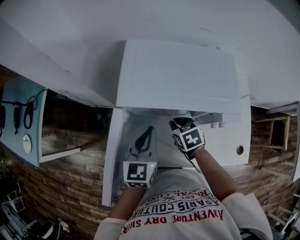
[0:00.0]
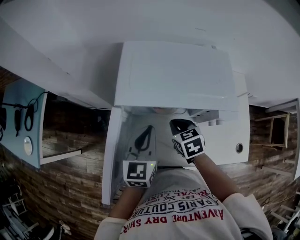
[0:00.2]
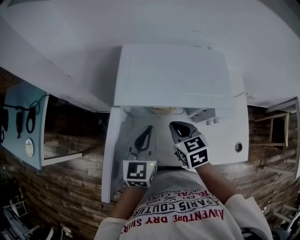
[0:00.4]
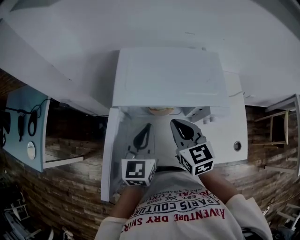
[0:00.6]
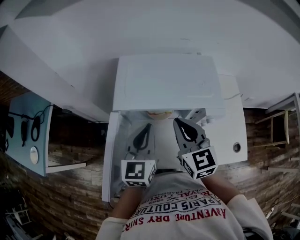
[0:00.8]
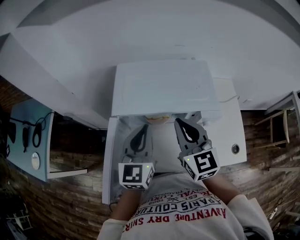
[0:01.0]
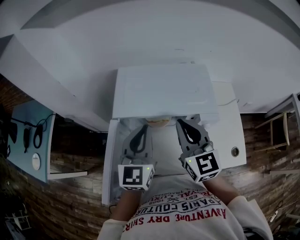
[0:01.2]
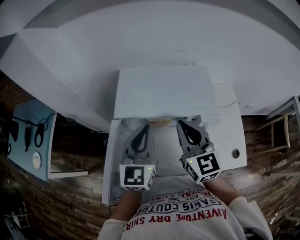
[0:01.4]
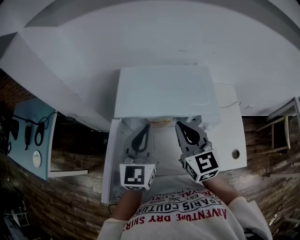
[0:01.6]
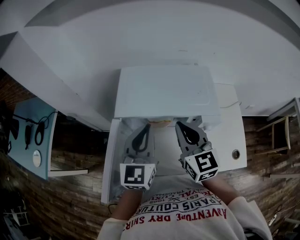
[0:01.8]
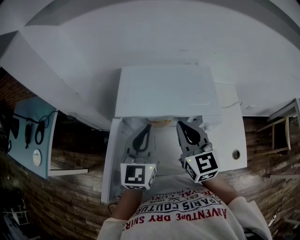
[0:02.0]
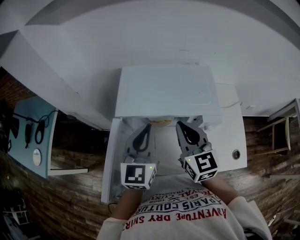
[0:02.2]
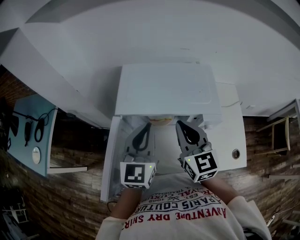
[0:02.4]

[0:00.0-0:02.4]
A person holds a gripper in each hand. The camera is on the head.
0:00.0 to 0:01.2: The left gripper heads upward, covering about 15 cm.

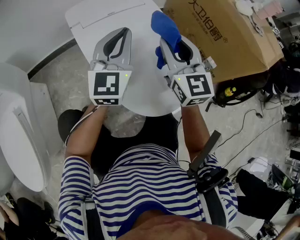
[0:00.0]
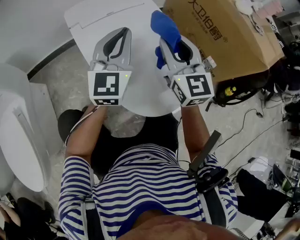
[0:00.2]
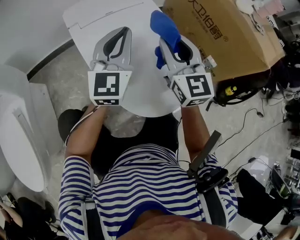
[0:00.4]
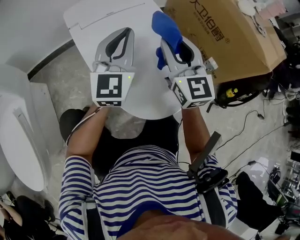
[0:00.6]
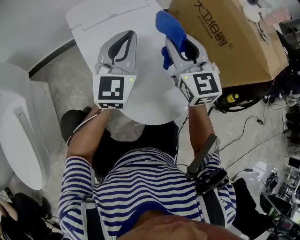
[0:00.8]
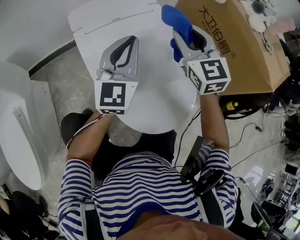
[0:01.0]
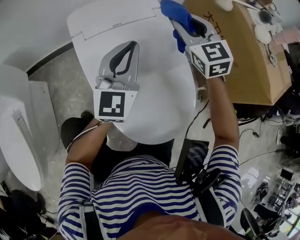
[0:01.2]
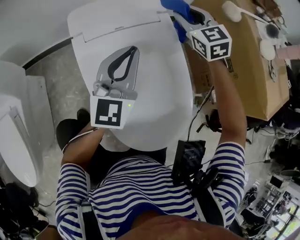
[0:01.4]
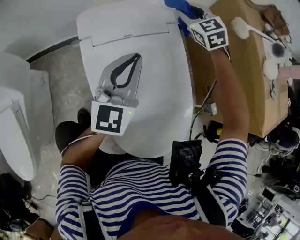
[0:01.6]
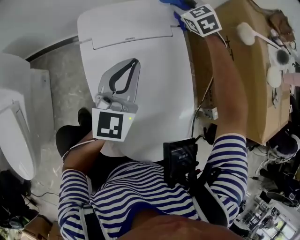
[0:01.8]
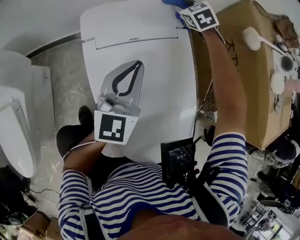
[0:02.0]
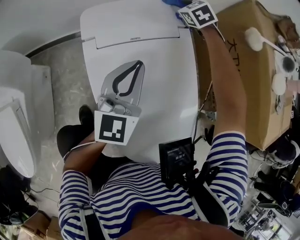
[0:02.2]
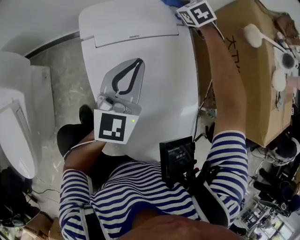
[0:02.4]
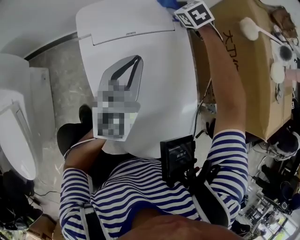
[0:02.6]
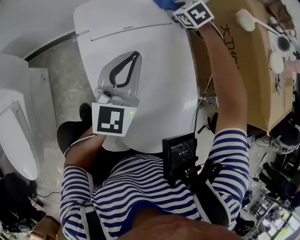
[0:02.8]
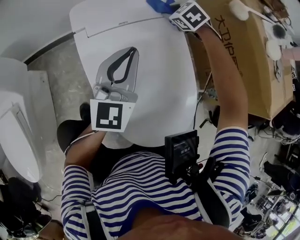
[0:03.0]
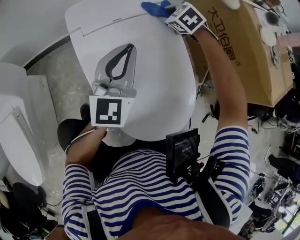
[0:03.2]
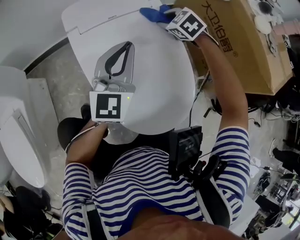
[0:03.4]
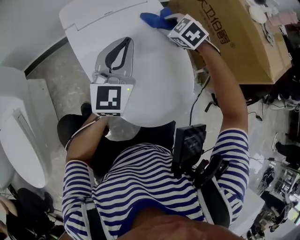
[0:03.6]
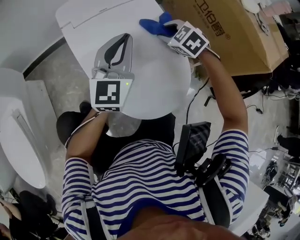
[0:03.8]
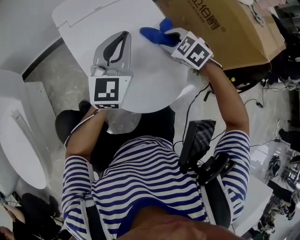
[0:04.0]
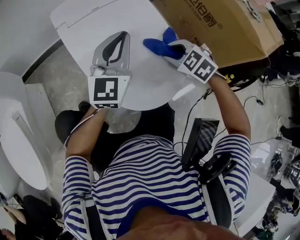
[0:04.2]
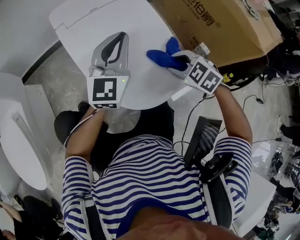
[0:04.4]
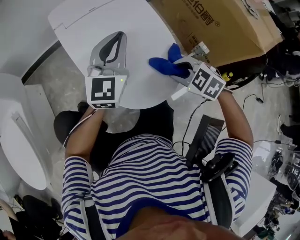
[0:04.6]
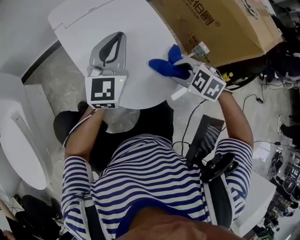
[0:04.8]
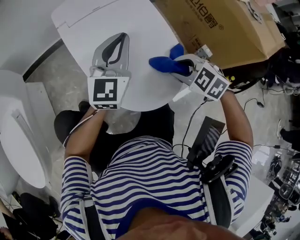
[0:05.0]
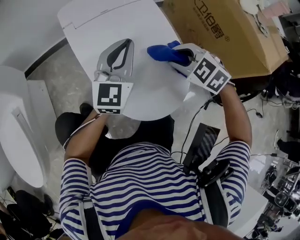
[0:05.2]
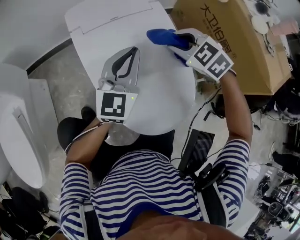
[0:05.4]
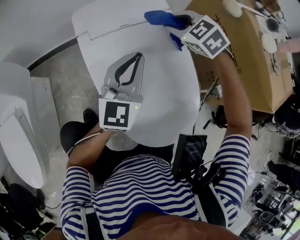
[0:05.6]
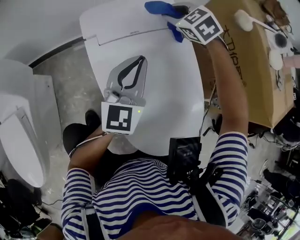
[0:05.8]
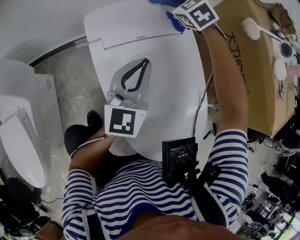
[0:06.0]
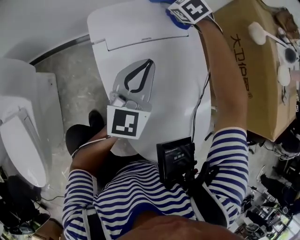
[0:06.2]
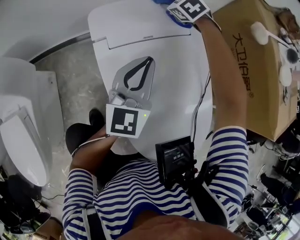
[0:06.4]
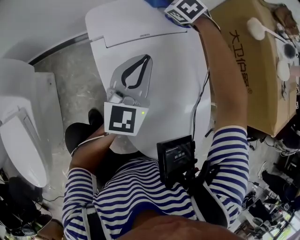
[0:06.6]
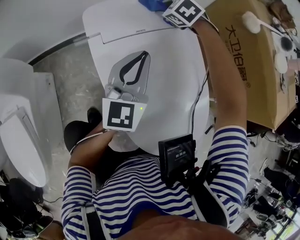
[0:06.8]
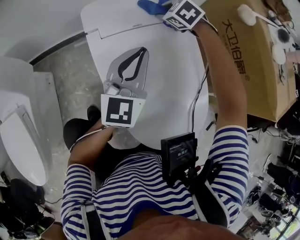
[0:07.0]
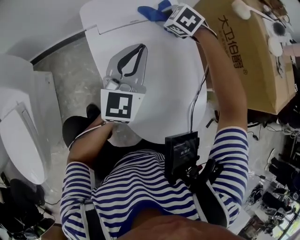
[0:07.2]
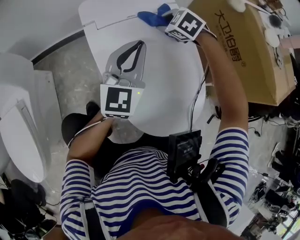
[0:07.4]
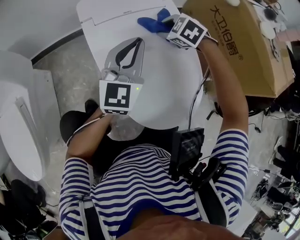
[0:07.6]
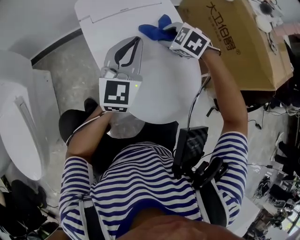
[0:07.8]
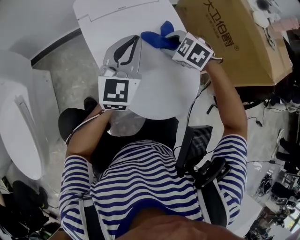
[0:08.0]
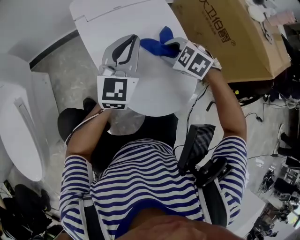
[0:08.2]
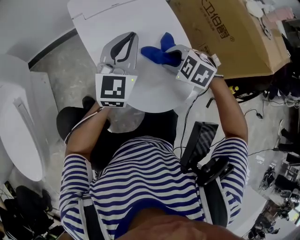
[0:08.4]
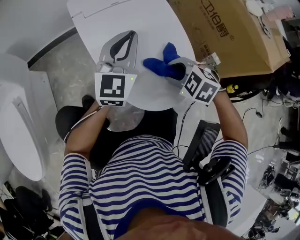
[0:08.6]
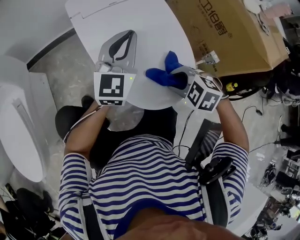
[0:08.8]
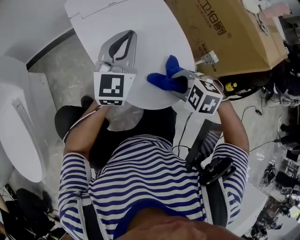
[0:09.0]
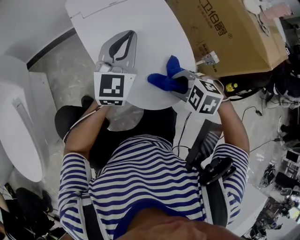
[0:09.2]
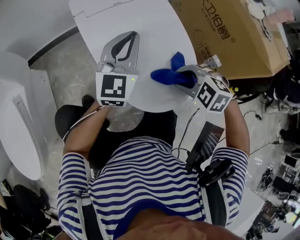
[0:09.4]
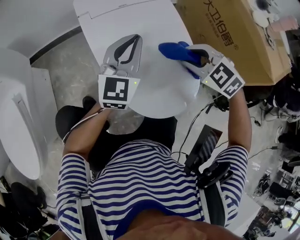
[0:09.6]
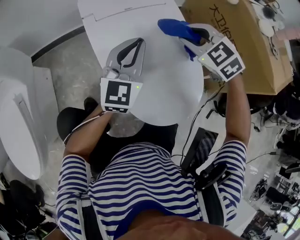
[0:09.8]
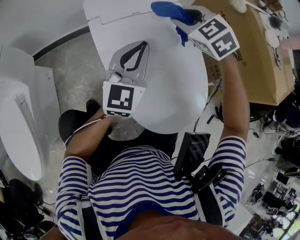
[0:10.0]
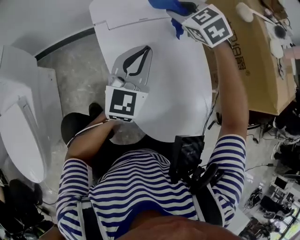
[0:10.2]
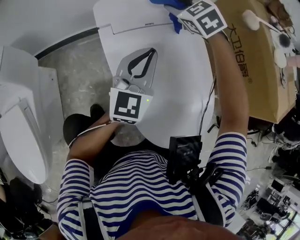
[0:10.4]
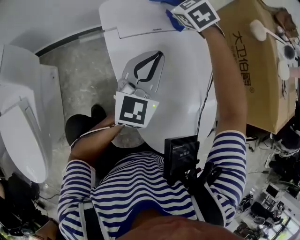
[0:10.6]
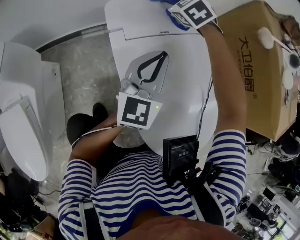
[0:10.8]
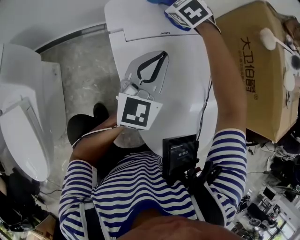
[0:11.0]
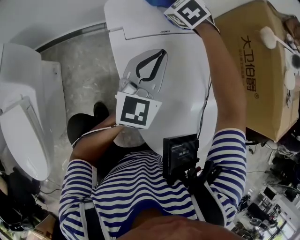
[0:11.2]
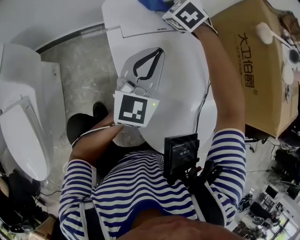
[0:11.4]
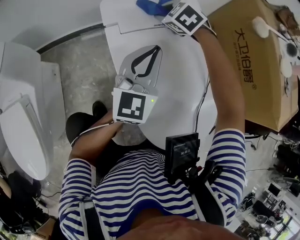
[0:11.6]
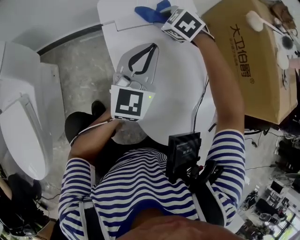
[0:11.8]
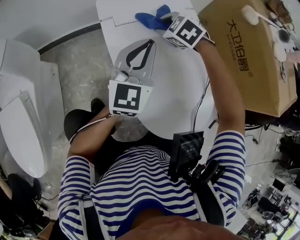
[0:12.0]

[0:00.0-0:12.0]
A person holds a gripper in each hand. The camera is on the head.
0:00.0 to 0:01.6: The left gripper travels forward by roughly 10 cm. The right gripper goes about 35 cm forward, and changes its angle by some 40 degrees.
0:01.6 to 0:03.0: The right gripper goes roughly 10 cm downward, travels forward and back again, roughly 10 cm each way, and swivels about 30 degrees.
0:03.0 to 0:04.4: The left gripper heads backward, covering about 10 cm. Meanwhile the right gripper goes approximately 40 cm backward.
0:04.4 to 0:06.0: The right gripper moves forward, roughly 50 cm. Meanwhile the left gripper goes roughly 15 cm forward and to the left.
0:06.0 to 0:07.6: The right gripper goes some 25 cm backward. Meanwhile the left gripper moves backward, about 10 cm.
0:07.6 to 0:09.0: The left gripper goes about 5 cm backward; the right gripper travels backward by some 30 cm.
0:09.0 to 0:10.4: The right gripper shifts some 50 cm forward, and swivels about 30 degrees; the left gripper shifts approximately 10 cm forward.
0:10.4 to 0:12.0: The right gripper shifts approximately 15 cm downward and backward.

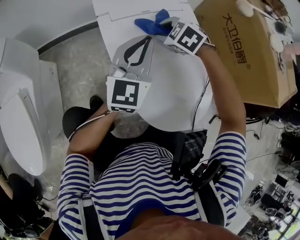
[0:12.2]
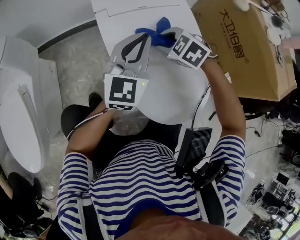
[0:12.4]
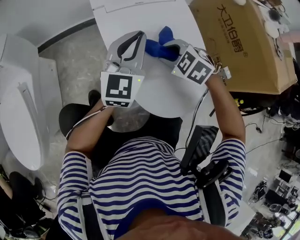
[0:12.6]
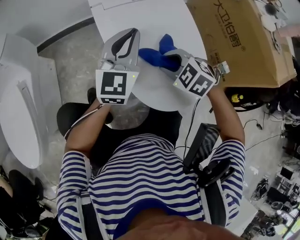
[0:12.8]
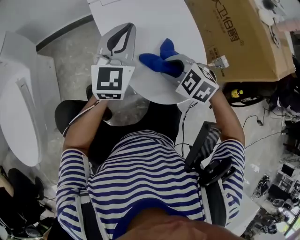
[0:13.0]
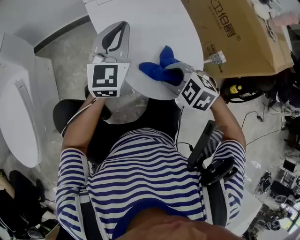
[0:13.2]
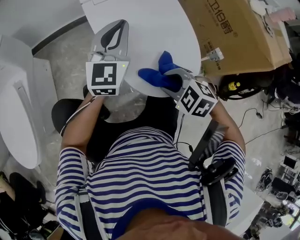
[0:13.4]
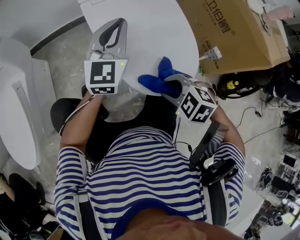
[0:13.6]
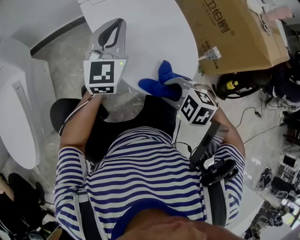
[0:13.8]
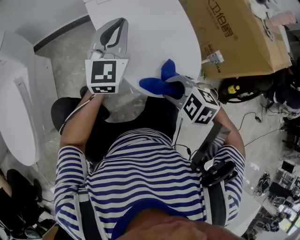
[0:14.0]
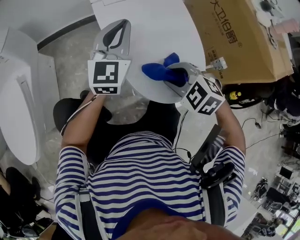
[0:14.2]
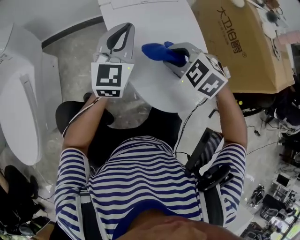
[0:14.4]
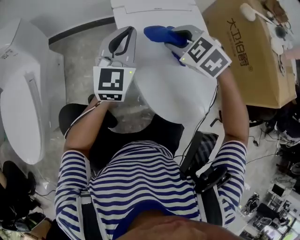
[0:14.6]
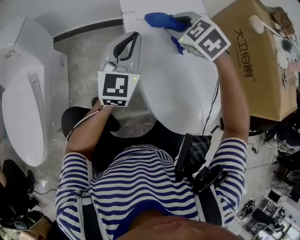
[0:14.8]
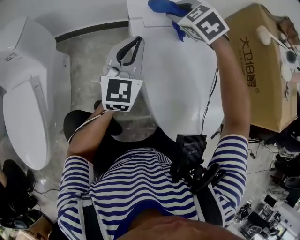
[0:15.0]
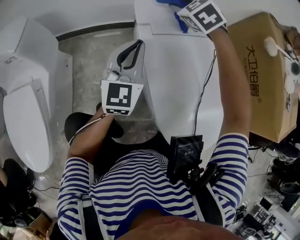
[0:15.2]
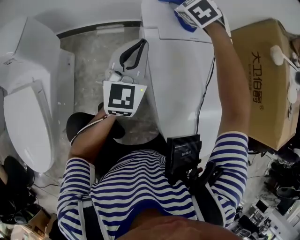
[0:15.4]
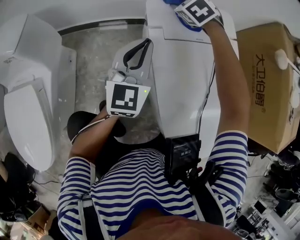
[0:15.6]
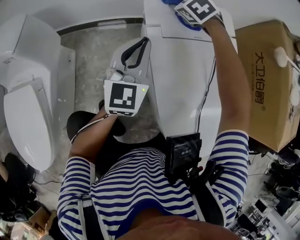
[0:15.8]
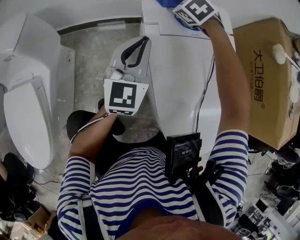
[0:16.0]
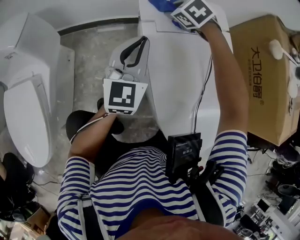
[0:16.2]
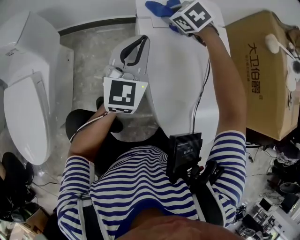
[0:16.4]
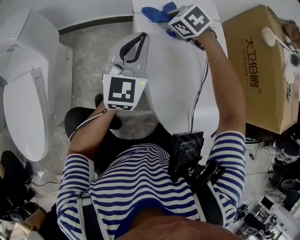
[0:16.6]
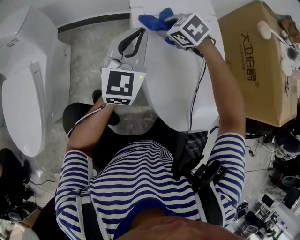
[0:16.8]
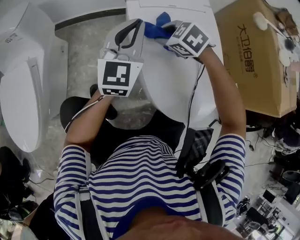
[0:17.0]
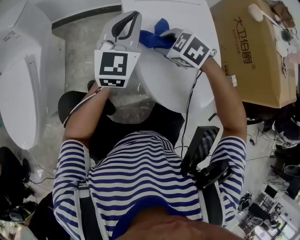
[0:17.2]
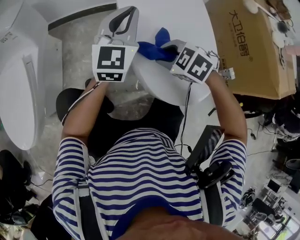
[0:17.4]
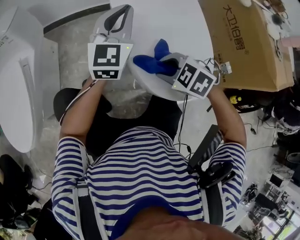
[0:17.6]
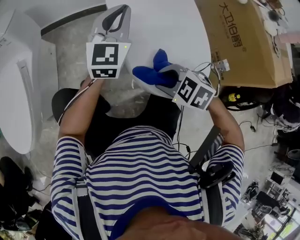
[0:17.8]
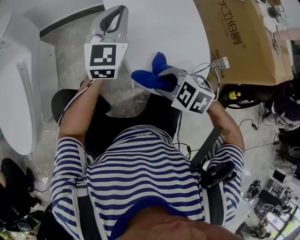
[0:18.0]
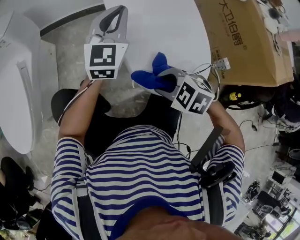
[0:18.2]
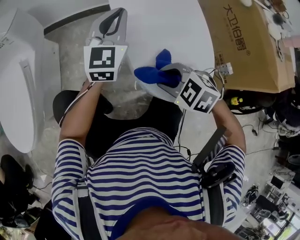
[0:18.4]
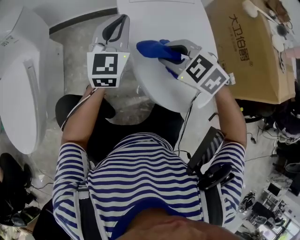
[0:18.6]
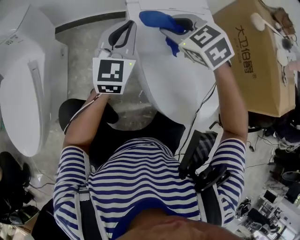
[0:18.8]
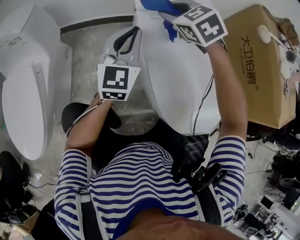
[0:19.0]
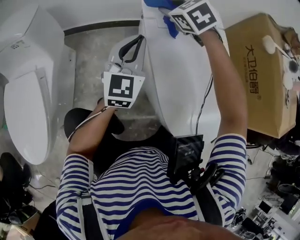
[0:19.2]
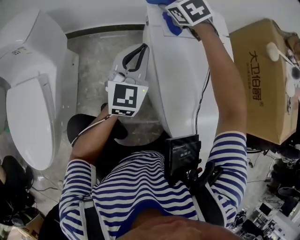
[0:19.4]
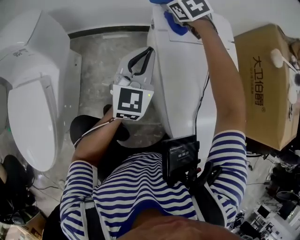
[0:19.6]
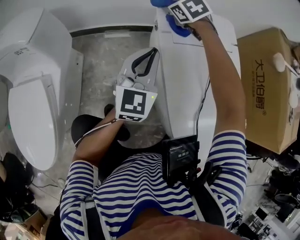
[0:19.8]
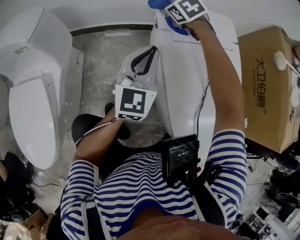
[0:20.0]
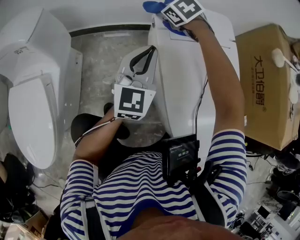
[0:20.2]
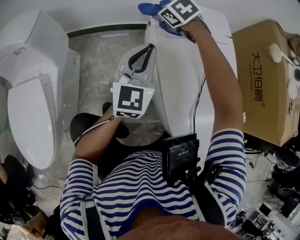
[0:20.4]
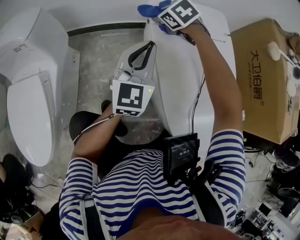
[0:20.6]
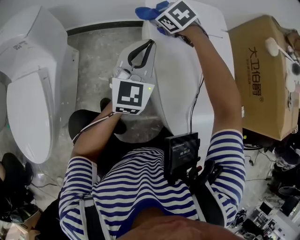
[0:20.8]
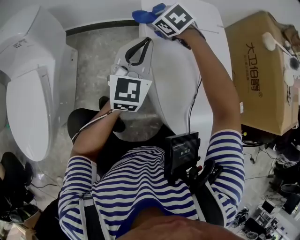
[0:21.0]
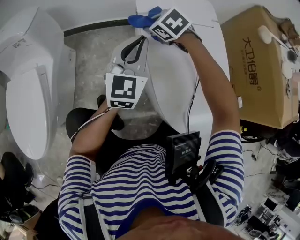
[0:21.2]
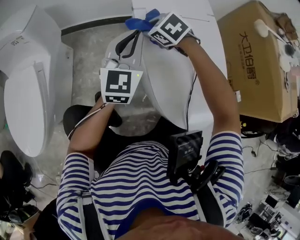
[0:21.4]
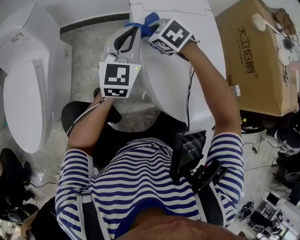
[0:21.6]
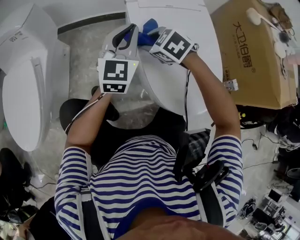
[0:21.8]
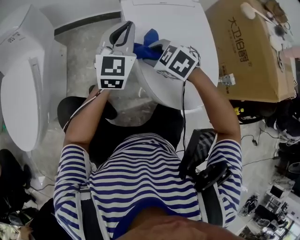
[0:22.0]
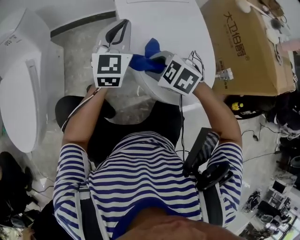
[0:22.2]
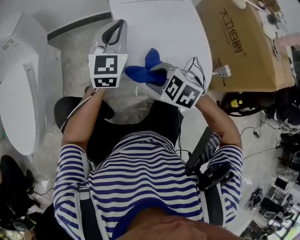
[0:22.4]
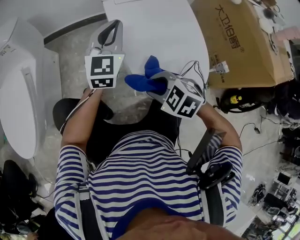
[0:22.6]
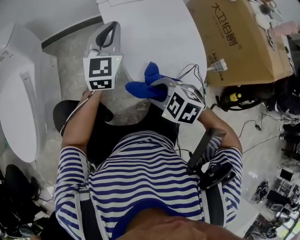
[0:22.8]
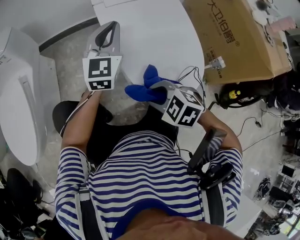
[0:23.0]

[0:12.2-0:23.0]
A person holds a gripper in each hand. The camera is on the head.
0:12.2 to 0:13.8: The right gripper heads backward, covering some 40 cm. Meanwhile the left gripper heads backward, covering approximately 10 cm.
0:13.8 to 0:15.2: The right gripper heads forward, covering approximately 60 cm, and swivels approximately 20 degrees, while the left gripper travels forward and to the left by some 20 cm.
0:15.2 to 0:16.8: The left gripper goes approximately 10 cm backward. The right gripper goes approximately 20 cm backward and downward, and changes its angle by approximately 20 degrees.
0:16.8 to 0:18.4: The right gripper shifts roughly 30 cm backward. Meanwhile the left gripper changes place by about 5 cm.
0:18.4 to 0:20.0: The left gripper is displaced forward and to the left by about 15 cm; the right gripper is displaced forward by about 50 cm, and swivels approximately 20 degrees.
0:20.0 to 0:21.4: The right gripper heads backward, covering approximately 20 cm, while the left gripper is displaced backward by approximately 10 cm.
0:21.4 to 0:23.0: The right gripper travels backward by about 35 cm, while the left gripper goes approximately 10 cm backward and to the right.
